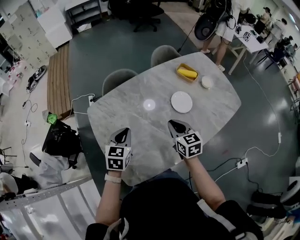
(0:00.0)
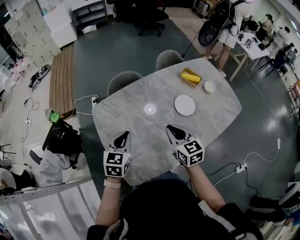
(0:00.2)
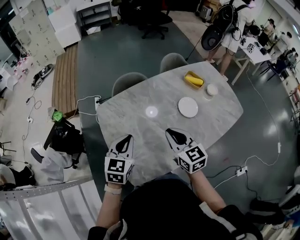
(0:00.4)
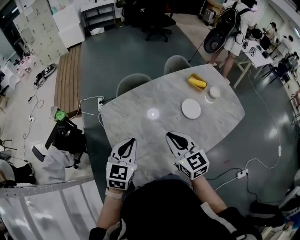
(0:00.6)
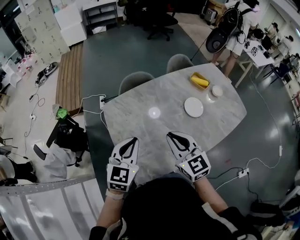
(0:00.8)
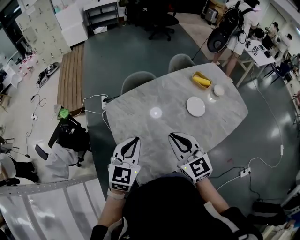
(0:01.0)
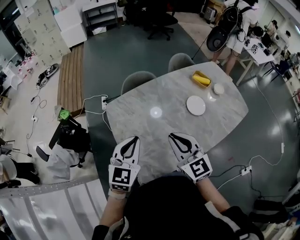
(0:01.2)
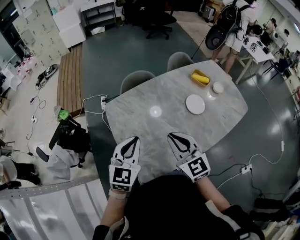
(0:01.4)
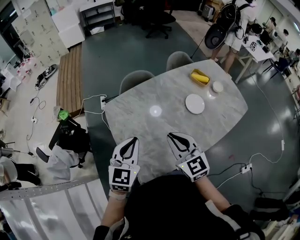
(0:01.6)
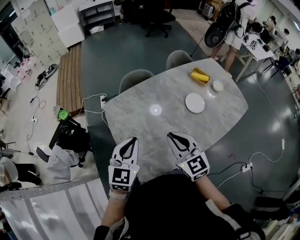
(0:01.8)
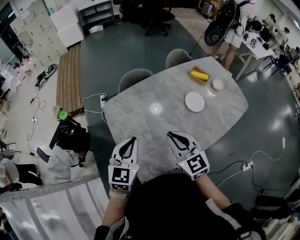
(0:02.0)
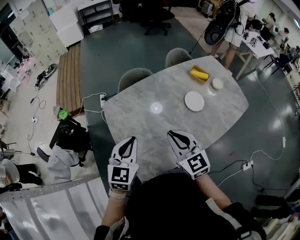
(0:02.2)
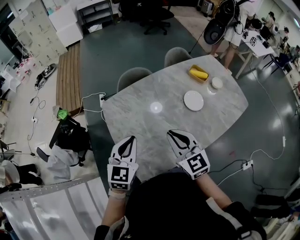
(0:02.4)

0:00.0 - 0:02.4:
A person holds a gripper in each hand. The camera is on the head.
0:00.0 - 0:01.2: The left gripper heads upward, backward and to the left, covering approximately 15 cm, and turns by about 20 degrees; the right gripper moves to the left, upward and backward, approximately 20 cm, and rotates about 30 degrees.
0:01.2 - 0:02.4: The grippers stay close to where they were, moving slightly.

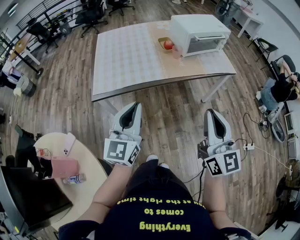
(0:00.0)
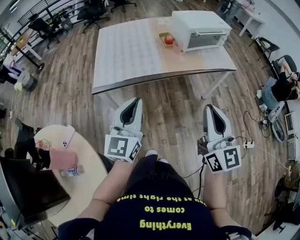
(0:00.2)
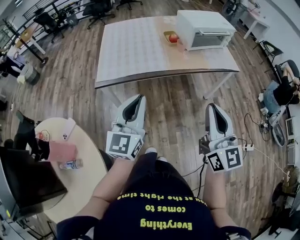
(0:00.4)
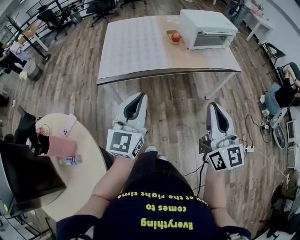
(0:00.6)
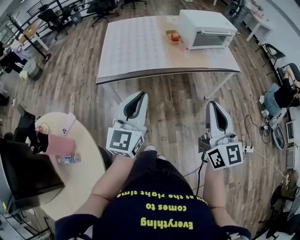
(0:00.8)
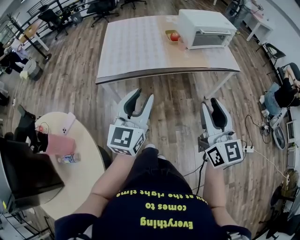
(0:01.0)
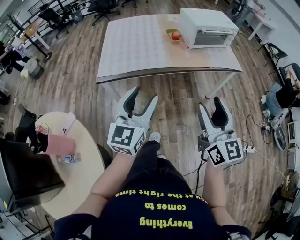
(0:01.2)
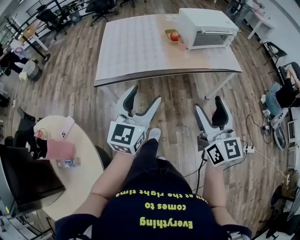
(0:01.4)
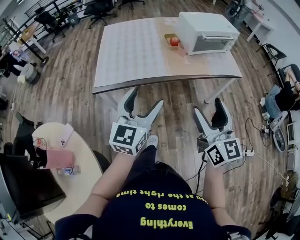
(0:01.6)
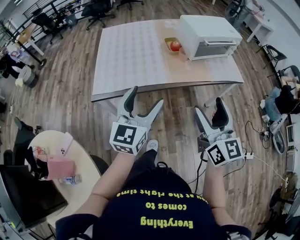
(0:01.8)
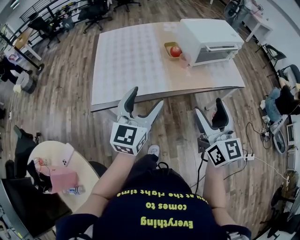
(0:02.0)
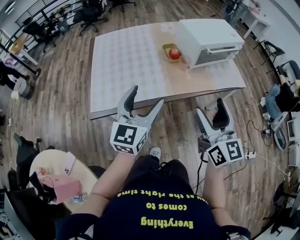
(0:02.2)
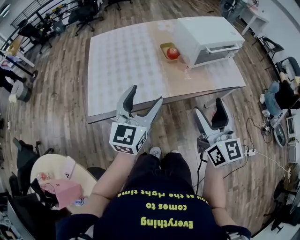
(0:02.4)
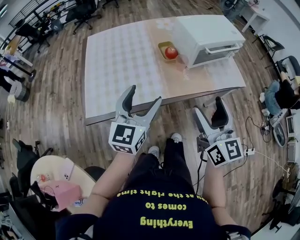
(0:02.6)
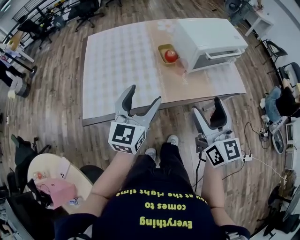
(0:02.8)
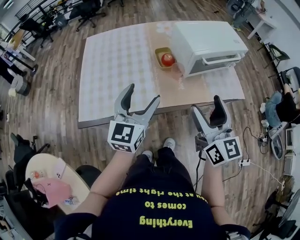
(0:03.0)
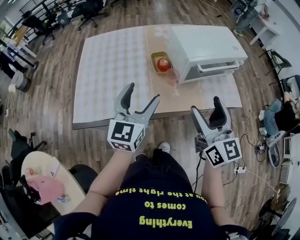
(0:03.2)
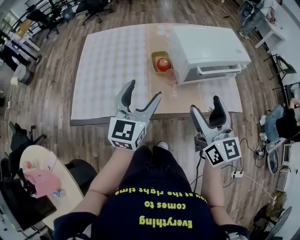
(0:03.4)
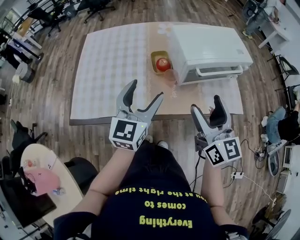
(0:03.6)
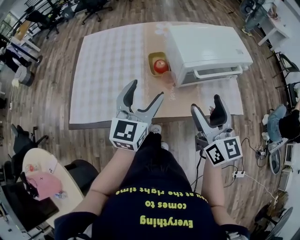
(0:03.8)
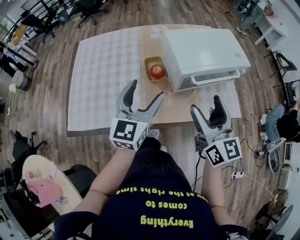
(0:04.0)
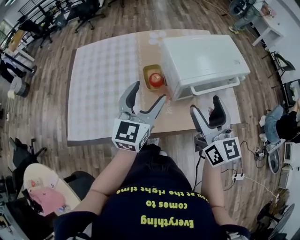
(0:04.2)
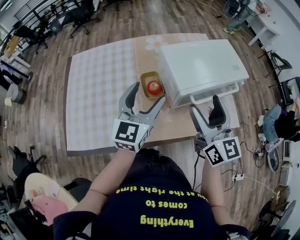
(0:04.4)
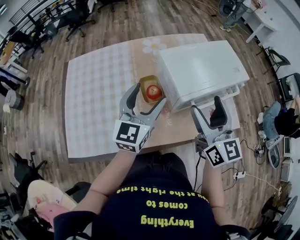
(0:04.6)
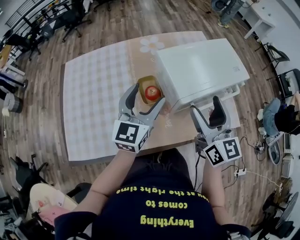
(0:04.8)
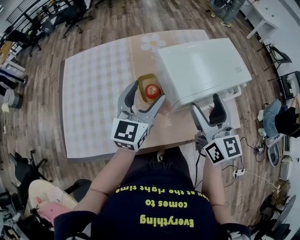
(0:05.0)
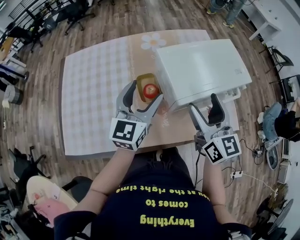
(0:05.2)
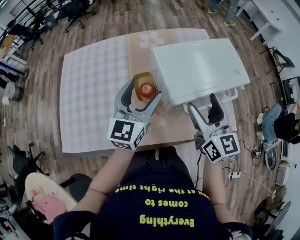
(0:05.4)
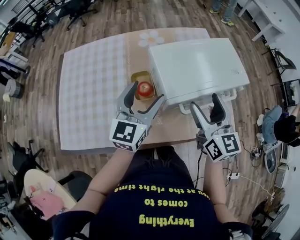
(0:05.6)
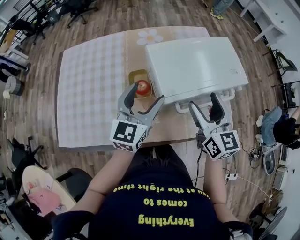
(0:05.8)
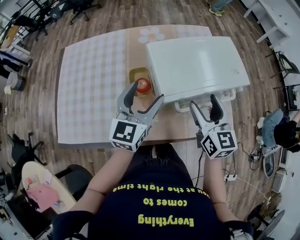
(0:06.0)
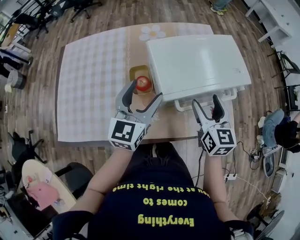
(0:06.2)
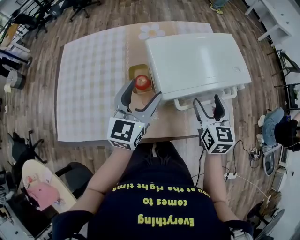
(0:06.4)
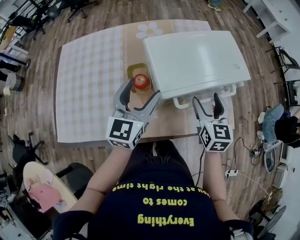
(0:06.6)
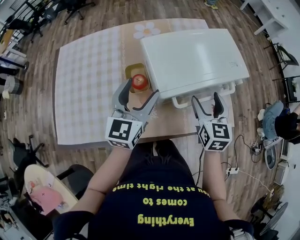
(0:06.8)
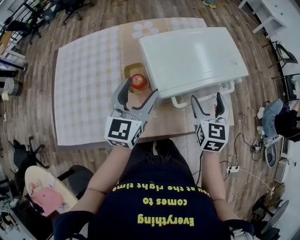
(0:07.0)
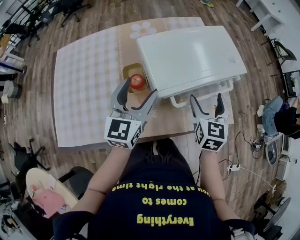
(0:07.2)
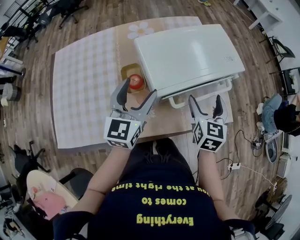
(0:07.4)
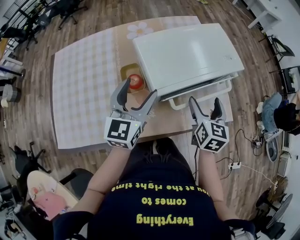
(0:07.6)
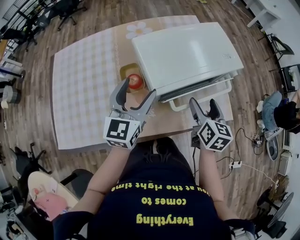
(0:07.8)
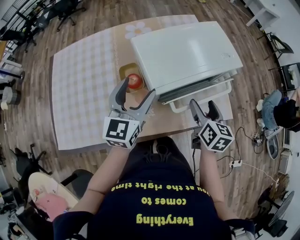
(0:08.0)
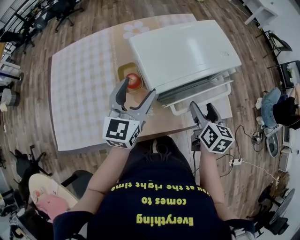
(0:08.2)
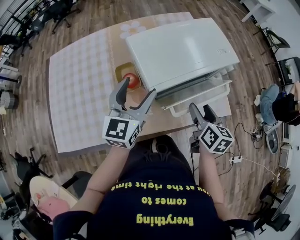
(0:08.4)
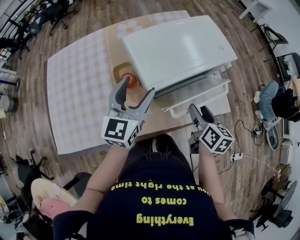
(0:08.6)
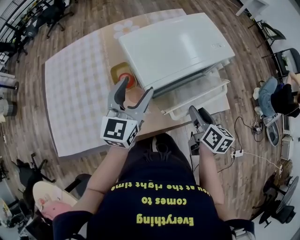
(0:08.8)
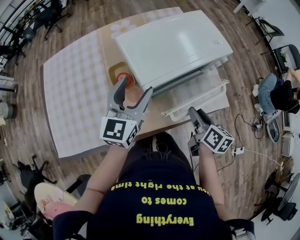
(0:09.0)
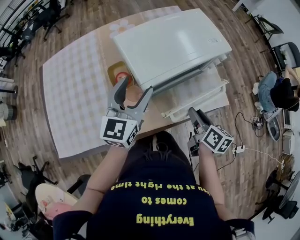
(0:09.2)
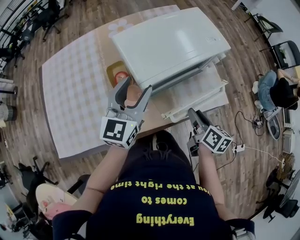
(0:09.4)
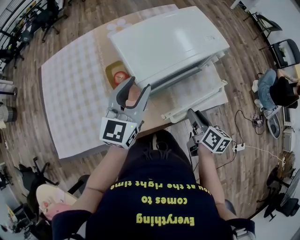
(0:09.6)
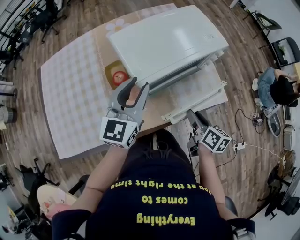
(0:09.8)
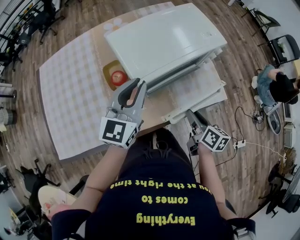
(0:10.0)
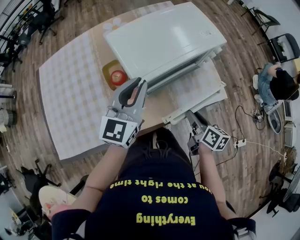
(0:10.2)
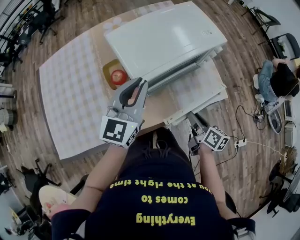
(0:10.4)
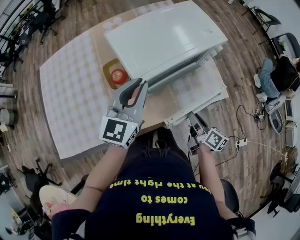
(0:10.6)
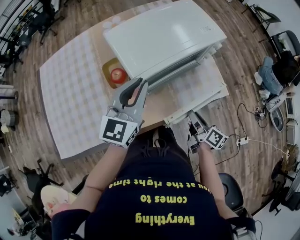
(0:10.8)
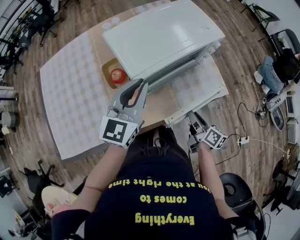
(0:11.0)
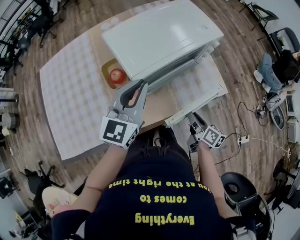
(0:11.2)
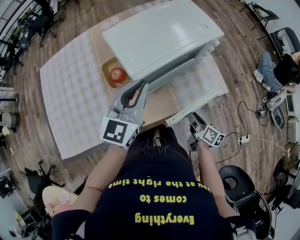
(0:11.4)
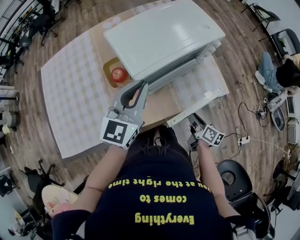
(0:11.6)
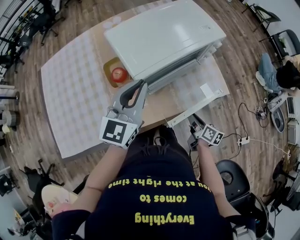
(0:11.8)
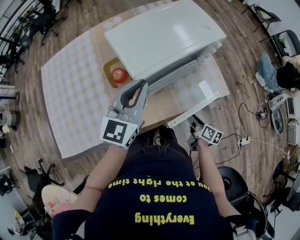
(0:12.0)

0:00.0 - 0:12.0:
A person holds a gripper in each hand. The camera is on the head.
0:00.0 - 0:01.6: The left gripper moves some 5 cm, and opens. Meanwhile the right gripper ends up some 5 cm from where it was, and opens its fingers.
0:01.6 - 0:03.0: Both grippers travel together forward, about 25 cm.
0:03.0 - 0:04.4: The right gripper is displaced forward by roughly 20 cm. Meanwhile the left gripper travels forward and to the right by roughly 20 cm.
0:04.4 - 0:06.0: The right gripper travels to the right, downward and forward by roughly 15 cm, while the left gripper goes about 5 cm to the right.
0:06.0 - 0:07.6: The right gripper moves downward and to the right, about 10 cm, and rotates roughly 30 degrees.
0:07.6 - 0:09.0: The right gripper travels backward and downward by some 10 cm, rotates about 30 degrees, and closes its fingers.
0:09.0 - 0:10.4: The left gripper closes. The right gripper goes about 5 cm downward.
0:10.4 - 0:12.0: The right gripper shifts roughly 10 cm downward.

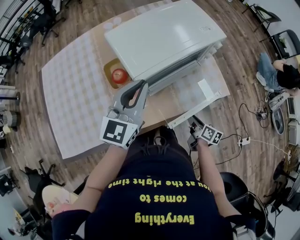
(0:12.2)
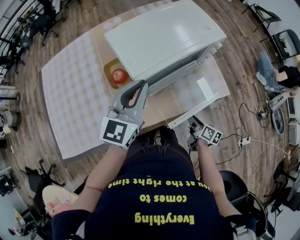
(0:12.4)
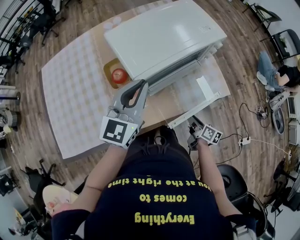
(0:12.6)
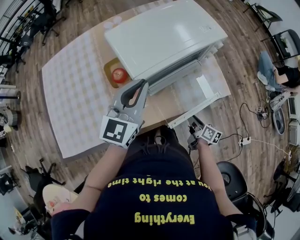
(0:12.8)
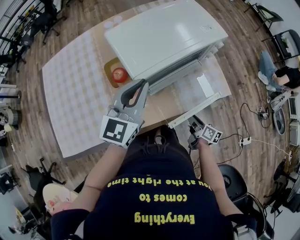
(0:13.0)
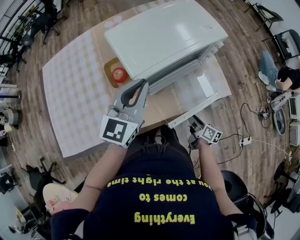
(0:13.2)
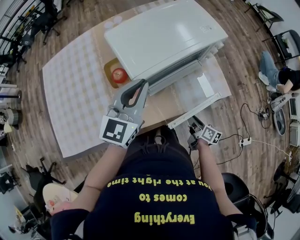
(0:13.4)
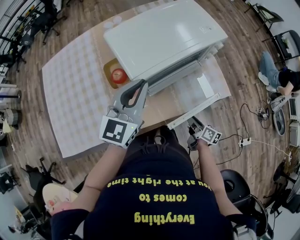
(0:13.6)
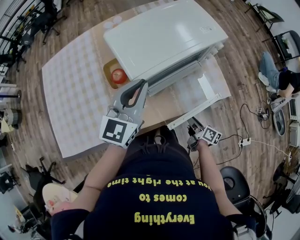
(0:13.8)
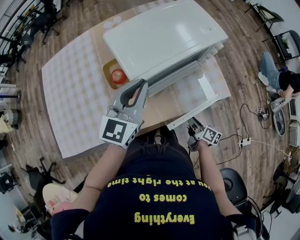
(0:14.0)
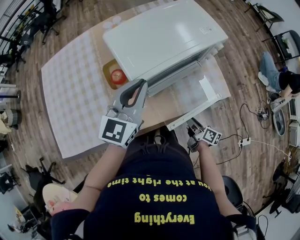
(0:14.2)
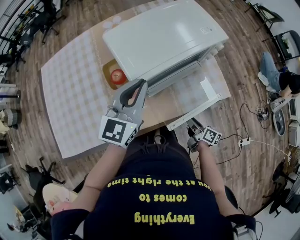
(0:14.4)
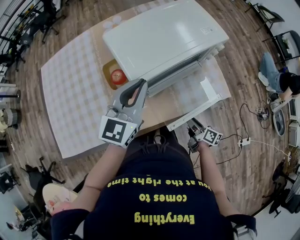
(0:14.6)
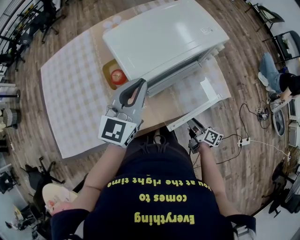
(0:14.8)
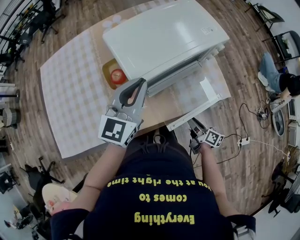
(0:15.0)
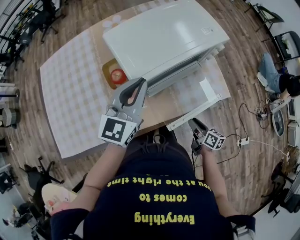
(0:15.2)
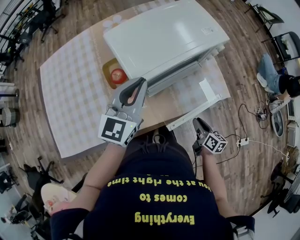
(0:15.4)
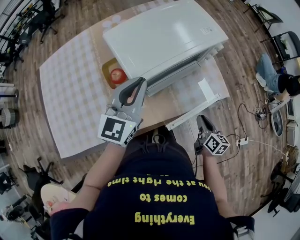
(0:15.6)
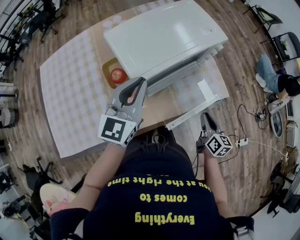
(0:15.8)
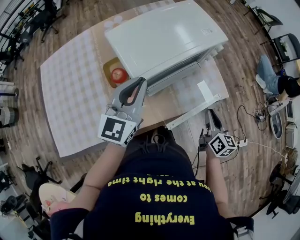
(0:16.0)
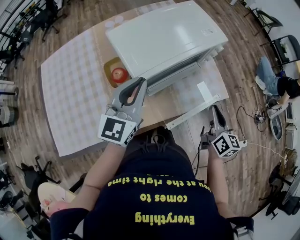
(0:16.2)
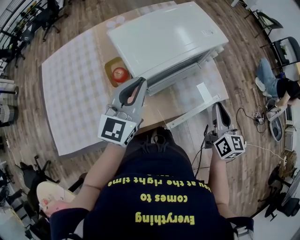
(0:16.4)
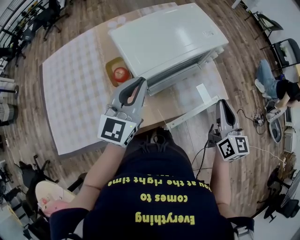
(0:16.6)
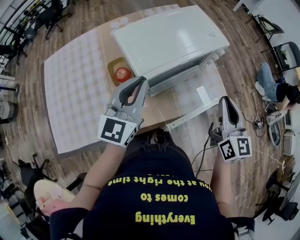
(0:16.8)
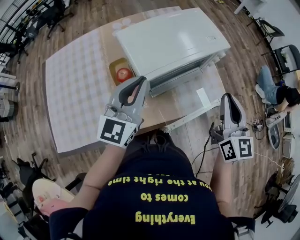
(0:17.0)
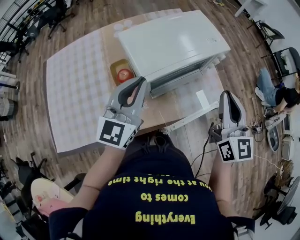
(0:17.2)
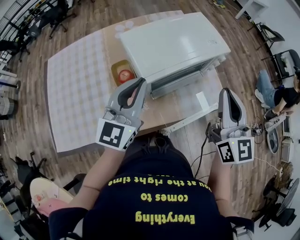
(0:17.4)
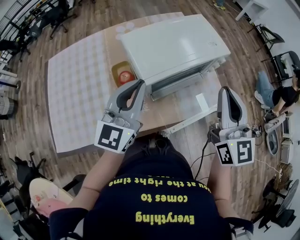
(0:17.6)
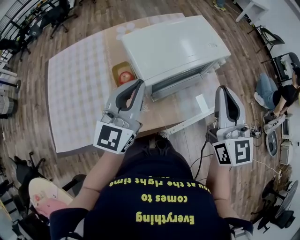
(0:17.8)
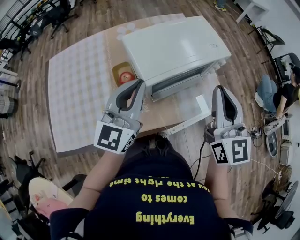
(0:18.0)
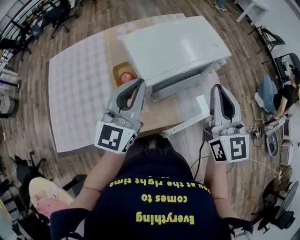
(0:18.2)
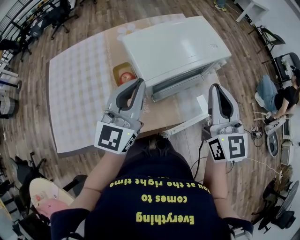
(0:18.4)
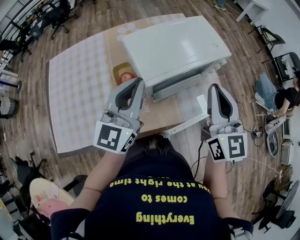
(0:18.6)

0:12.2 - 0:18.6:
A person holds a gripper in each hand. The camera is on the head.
0:12.2 - 0:13.8: The grippers make only small movements.
0:13.8 - 0:15.4: The right gripper moves about 5 cm, and turns by approximately 20 degrees.
0:15.4 - 0:17.0: The left gripper changes place by approximately 5 cm. The right gripper goes some 30 cm upward, and rotates around the line of its fingers by about 40 degrees, counterclockwise from behind.
0:17.0 - 0:18.6: The right gripper is displaced to the left and upward by some 10 cm.

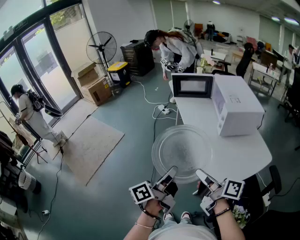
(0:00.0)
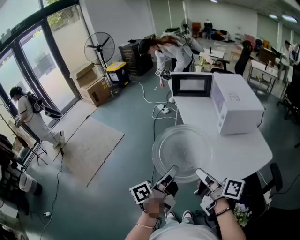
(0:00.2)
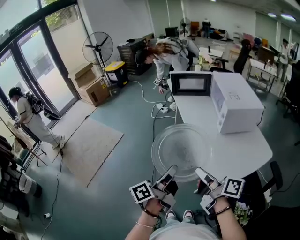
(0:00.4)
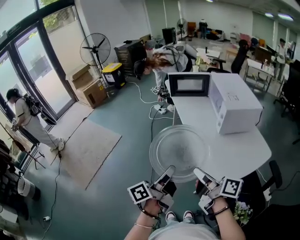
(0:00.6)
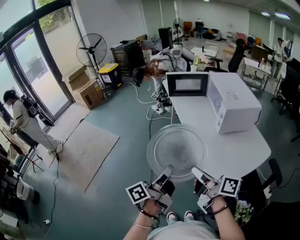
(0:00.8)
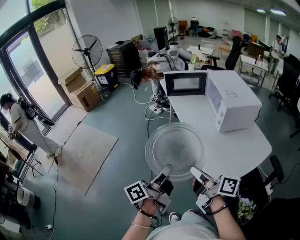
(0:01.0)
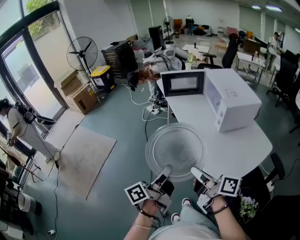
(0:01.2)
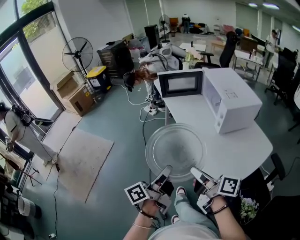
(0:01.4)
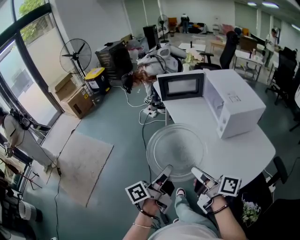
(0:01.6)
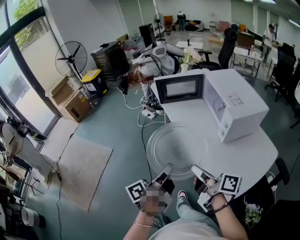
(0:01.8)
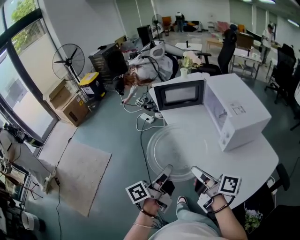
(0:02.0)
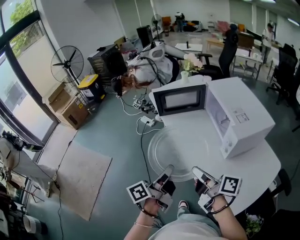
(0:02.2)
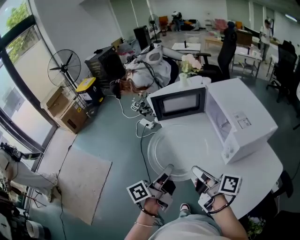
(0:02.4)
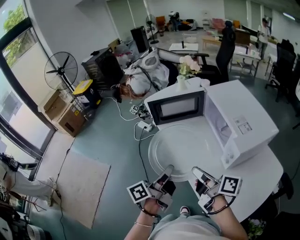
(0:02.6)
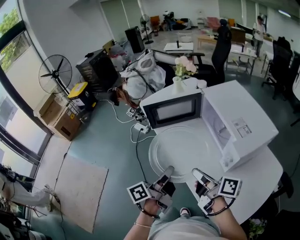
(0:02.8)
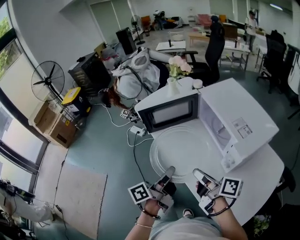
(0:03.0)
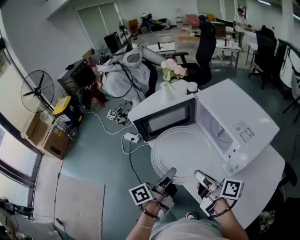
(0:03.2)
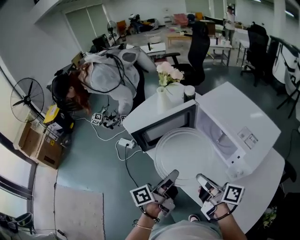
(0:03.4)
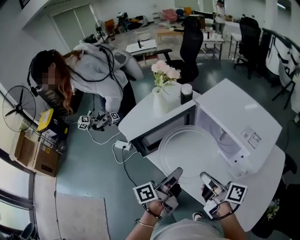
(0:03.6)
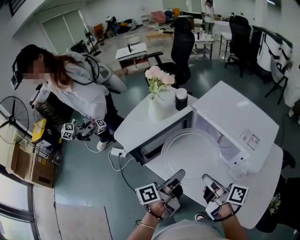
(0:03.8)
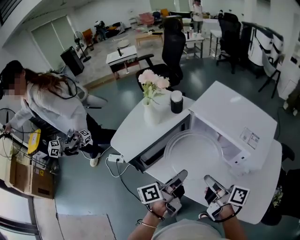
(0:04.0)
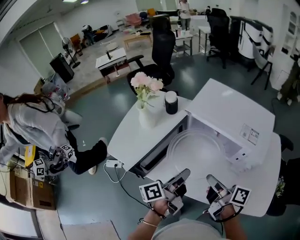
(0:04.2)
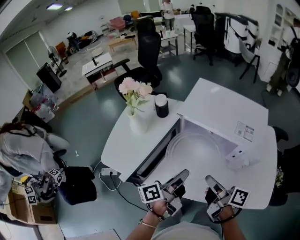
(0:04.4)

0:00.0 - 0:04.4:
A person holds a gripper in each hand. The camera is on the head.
0:00.0 - 0:01.4: The grippers both shift forward by about 10 cm.
0:01.4 - 0:03.0: The grippers both shift forward by approximately 35 cm.
0:03.0 - 0:04.4: The left gripper changes place by some 20 cm, and rotates some 50 degrees, while the right gripper ends up roughly 10 cm from where it was, and rotates about 40 degrees.
